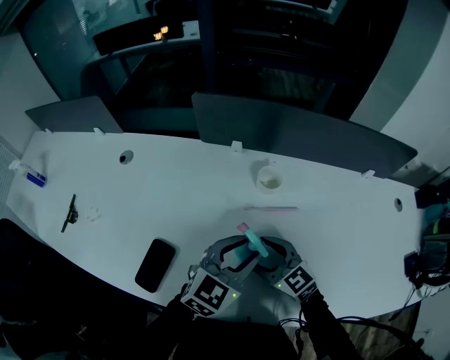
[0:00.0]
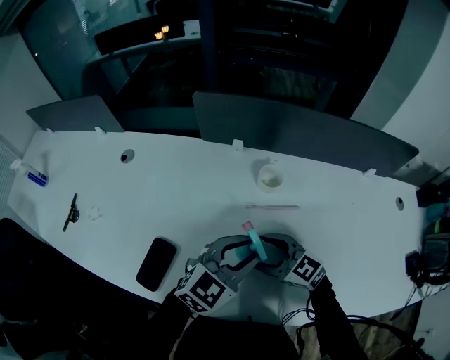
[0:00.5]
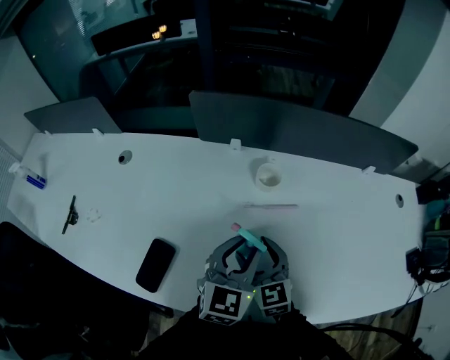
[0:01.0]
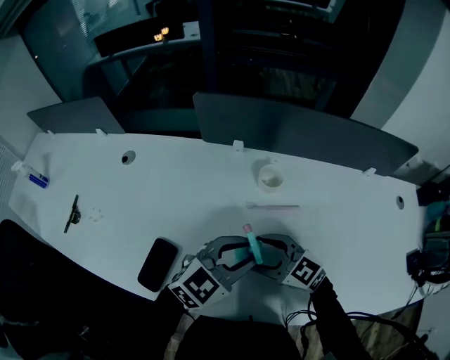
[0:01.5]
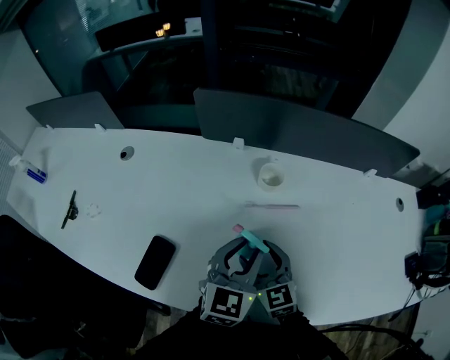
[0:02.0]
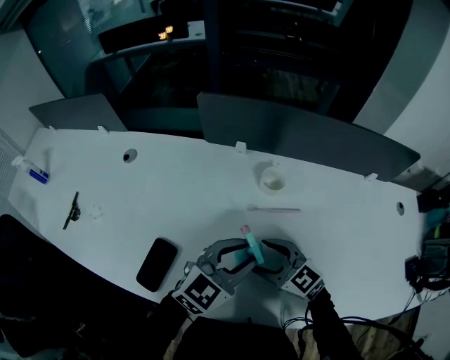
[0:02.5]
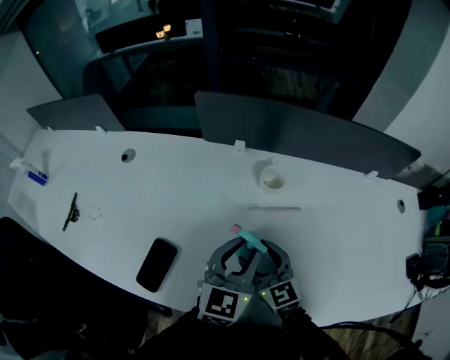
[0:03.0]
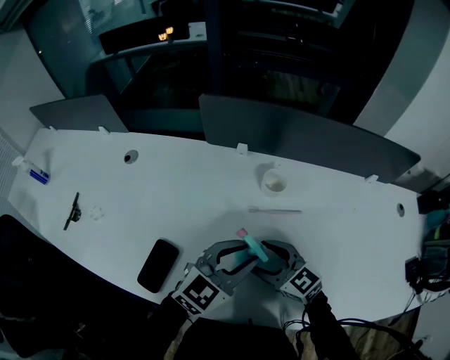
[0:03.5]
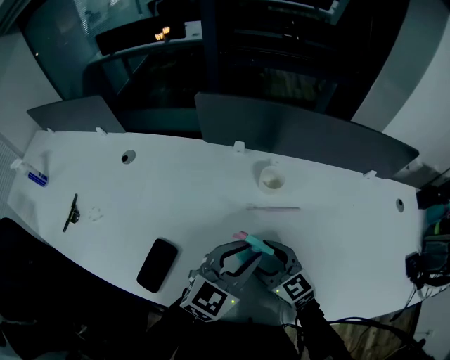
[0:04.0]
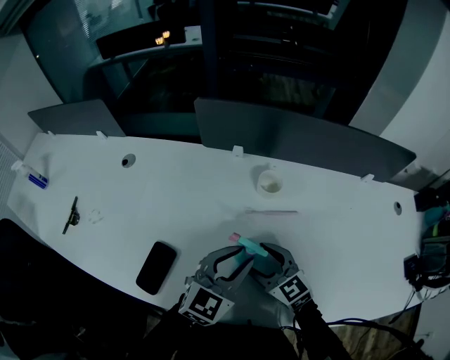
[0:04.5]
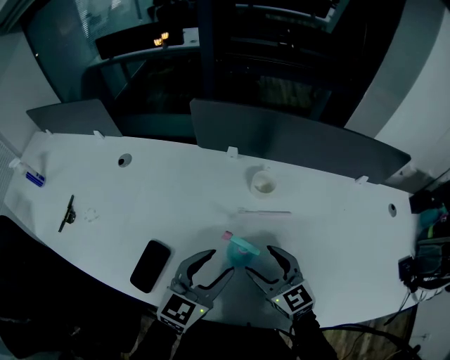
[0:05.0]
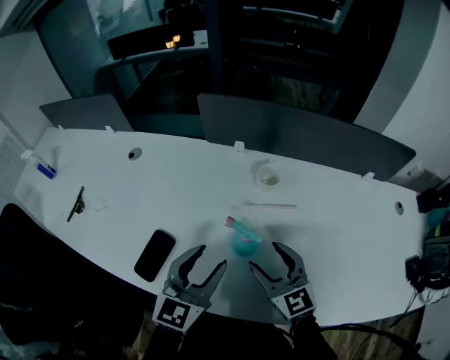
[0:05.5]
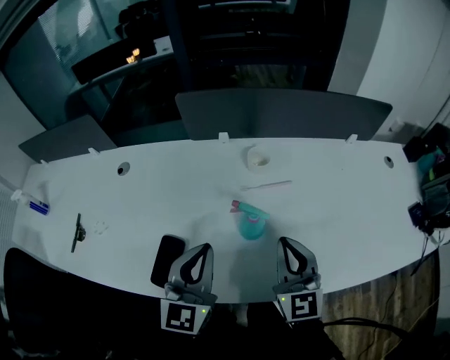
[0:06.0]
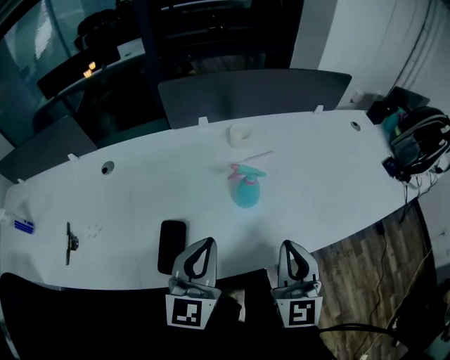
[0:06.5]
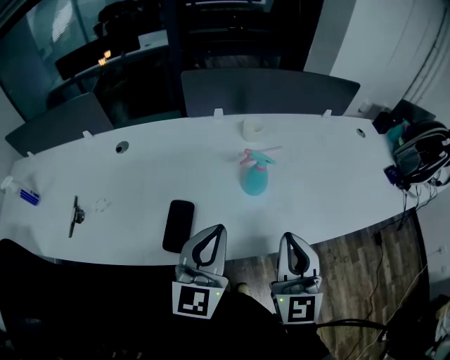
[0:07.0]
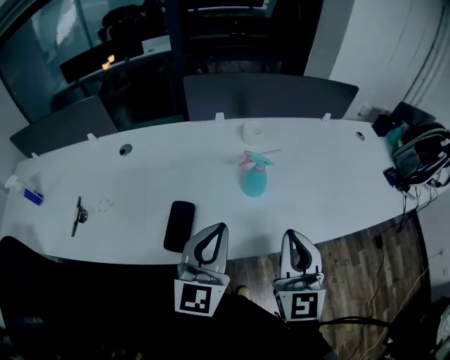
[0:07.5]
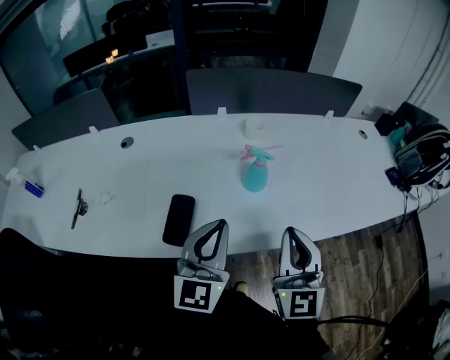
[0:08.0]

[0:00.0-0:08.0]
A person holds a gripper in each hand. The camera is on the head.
0:00.0 to 0:02.0: The right gripper turns by roughly 20 degrees.
0:04.0 to 0:06.0: The right gripper is displaced upward and backward by some 15 cm, rotates some 40 degrees, and closes up. The left gripper goes about 15 cm to the left and backward, rotates some 20 degrees, and closes.
0:06.0 to 0:08.0: The grippers both shift backward by roughly 15 cm.

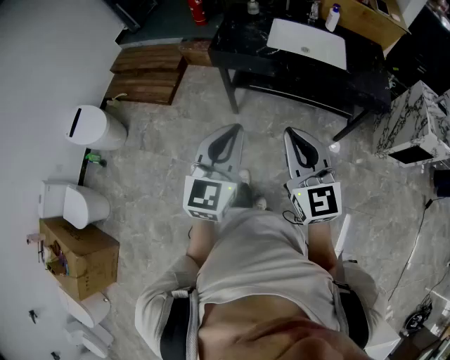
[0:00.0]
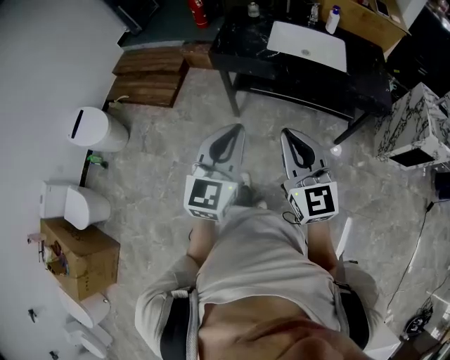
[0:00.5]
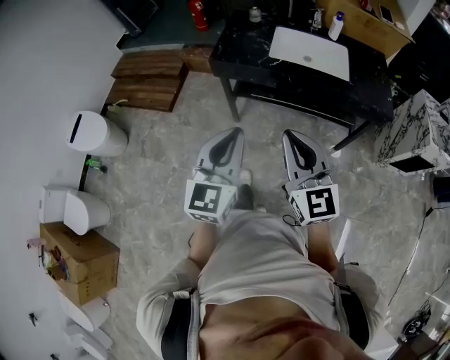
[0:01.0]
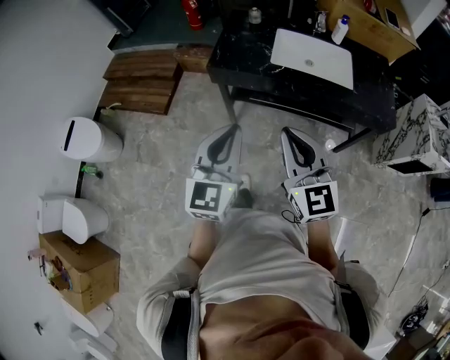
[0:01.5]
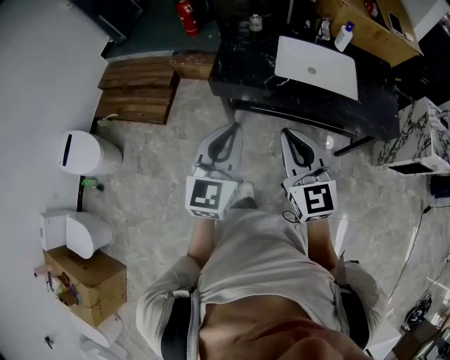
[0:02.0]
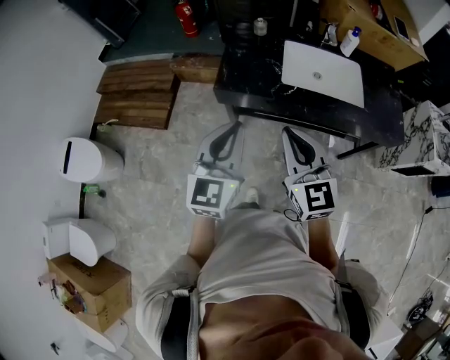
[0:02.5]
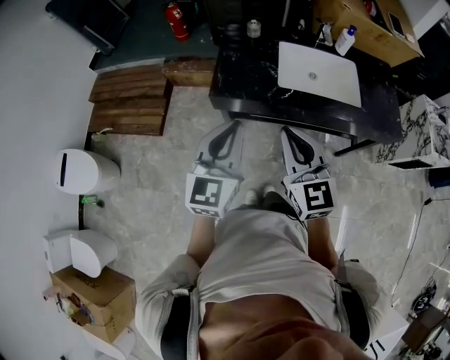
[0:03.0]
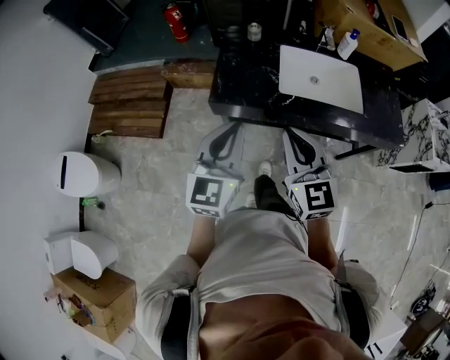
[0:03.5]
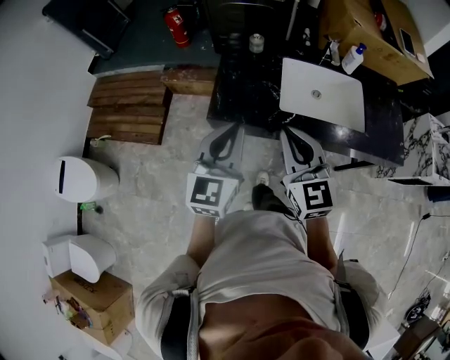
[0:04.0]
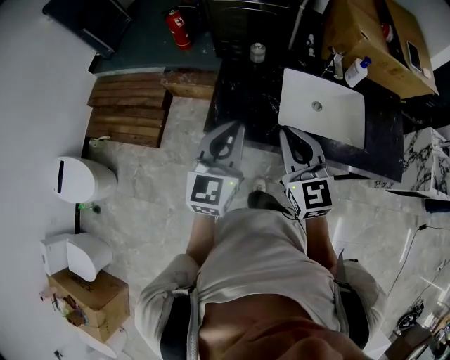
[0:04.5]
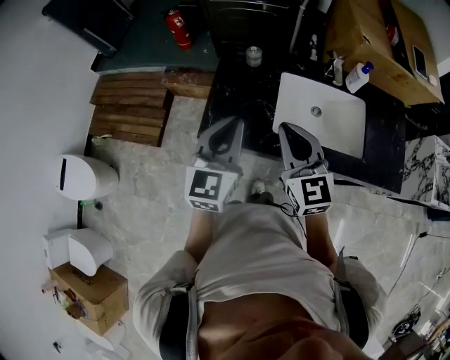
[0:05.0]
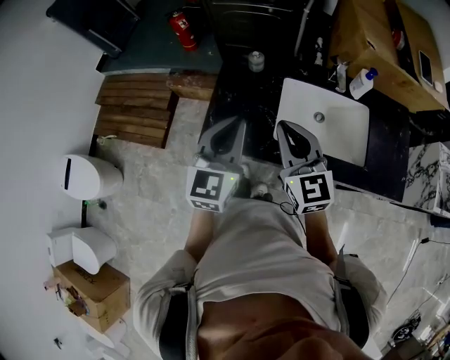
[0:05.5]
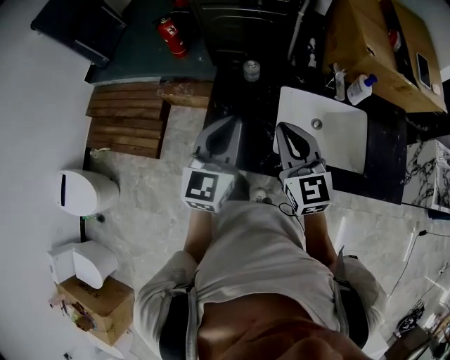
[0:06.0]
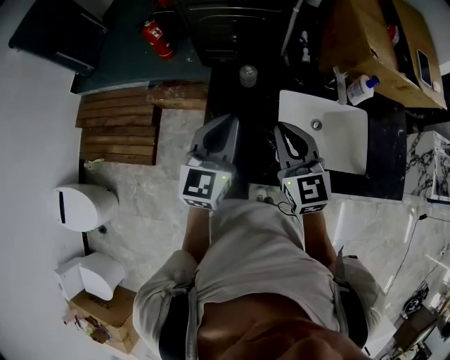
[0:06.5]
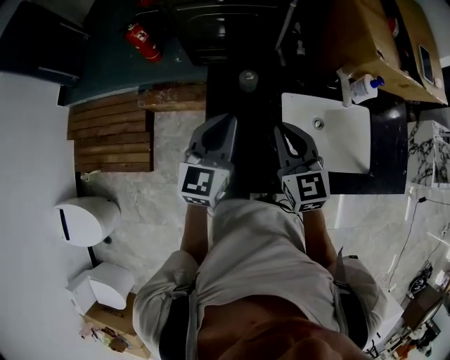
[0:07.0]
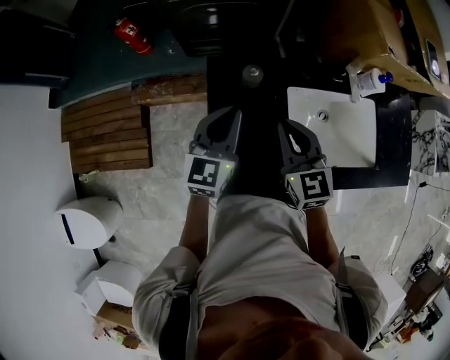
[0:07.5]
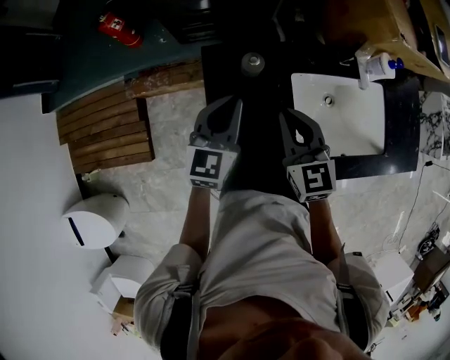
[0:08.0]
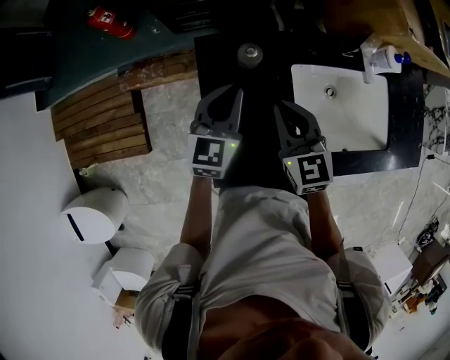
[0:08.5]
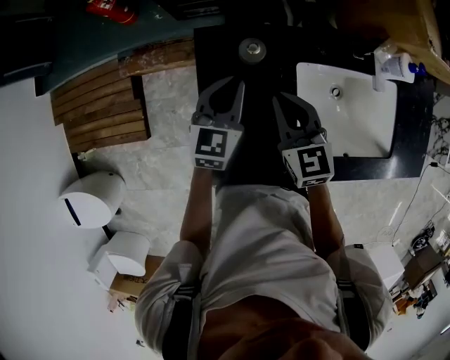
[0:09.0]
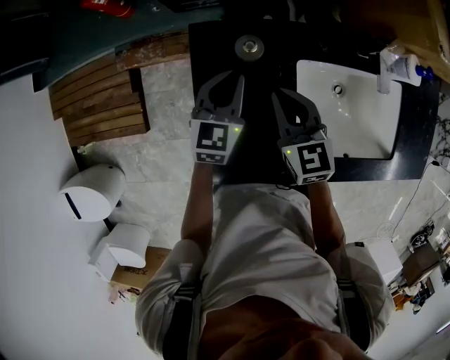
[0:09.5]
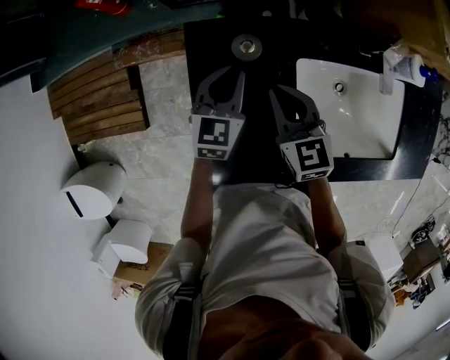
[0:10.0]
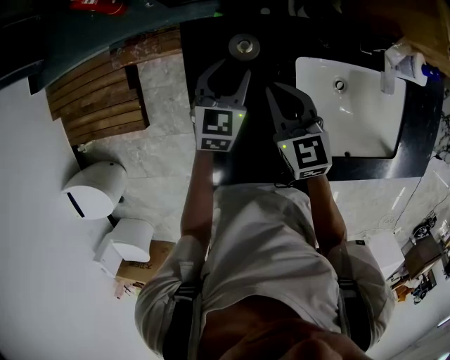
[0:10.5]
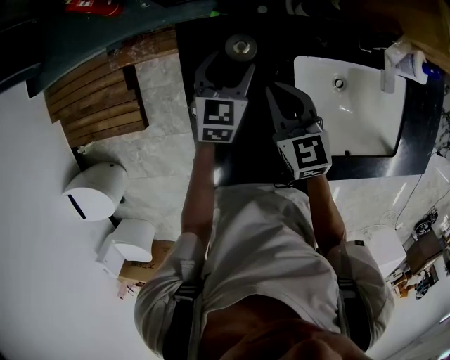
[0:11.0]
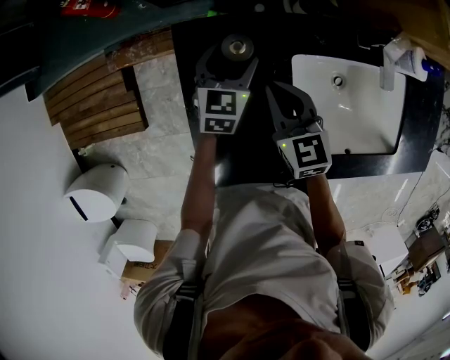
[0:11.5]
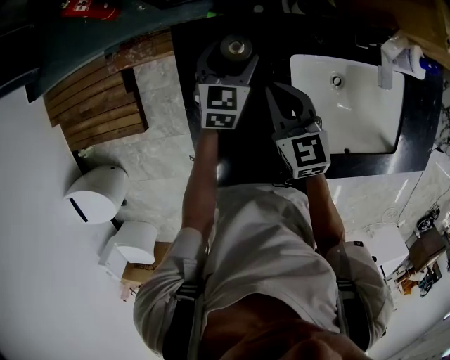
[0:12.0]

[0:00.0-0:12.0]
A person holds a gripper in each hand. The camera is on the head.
0:00.0 to 0:02.0: The grippers both shift forward by about 20 cm.
0:02.0 to 0:04.0: The two grippers go some 20 cm forward.
0:04.0 to 0:06.0: The two grippers go about 20 cm forward.
0:06.0 to 0:08.0: The left gripper travels forward and downward by roughly 25 cm, and rotates roughly 20 degrees, while the right gripper goes about 20 cm forward, downward and to the left.
0:08.0 to 0:10.0: Both grippers move downward and forward, about 10 cm.
0:10.0 to 0:12.0: The left gripper goes some 5 cm forward, and opens up.

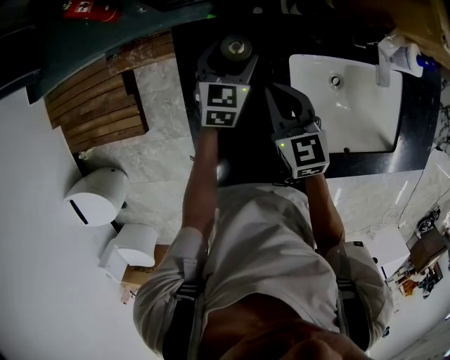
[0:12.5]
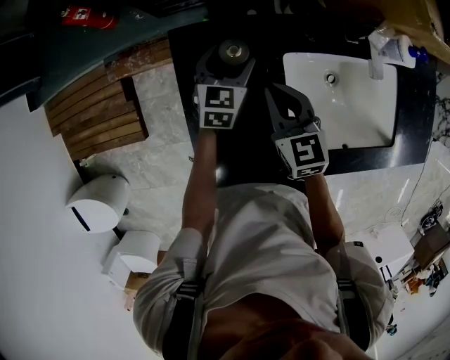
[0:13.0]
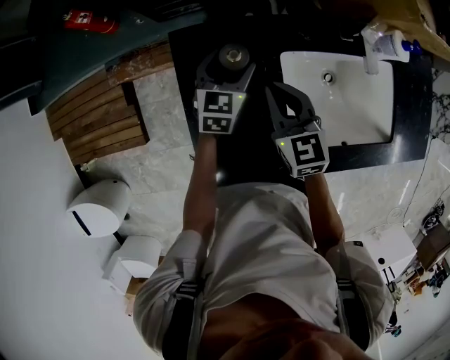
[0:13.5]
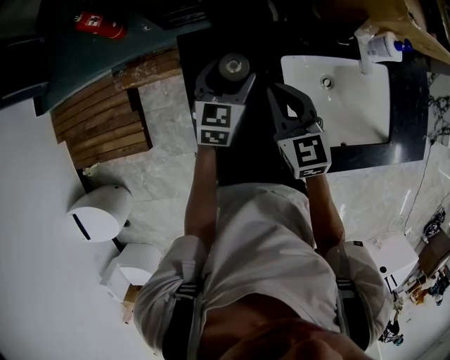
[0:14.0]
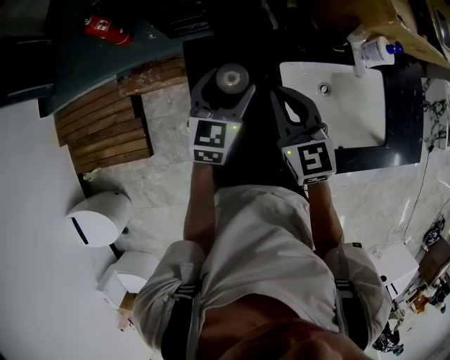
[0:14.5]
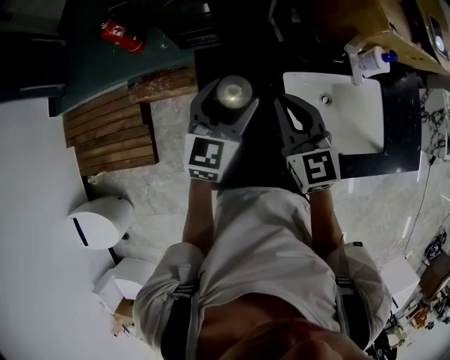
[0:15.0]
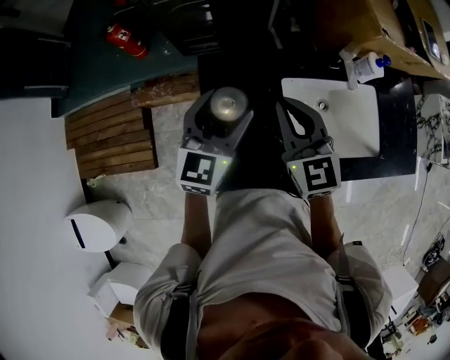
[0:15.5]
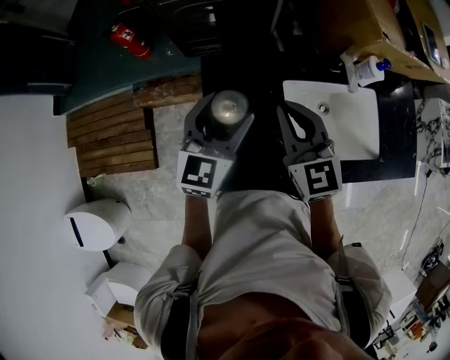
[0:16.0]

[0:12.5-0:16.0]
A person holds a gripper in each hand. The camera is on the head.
0:12.5 to 0:14.5: The right gripper travels upward by roughly 10 cm. Meanwhile the left gripper heads upward and backward, covering roughly 15 cm.
0:14.5 to 0:16.0: The left gripper travels upward and backward by roughly 15 cm, while the right gripper moves upward, about 10 cm.

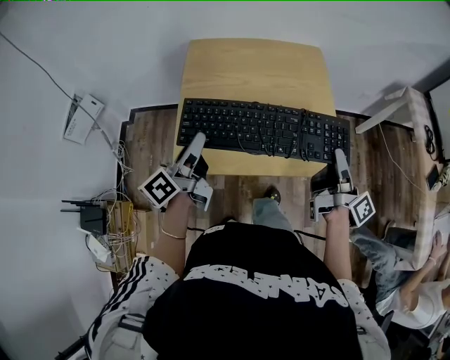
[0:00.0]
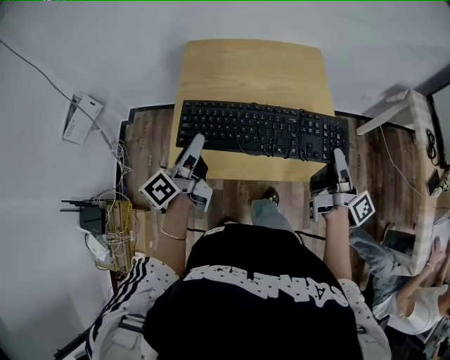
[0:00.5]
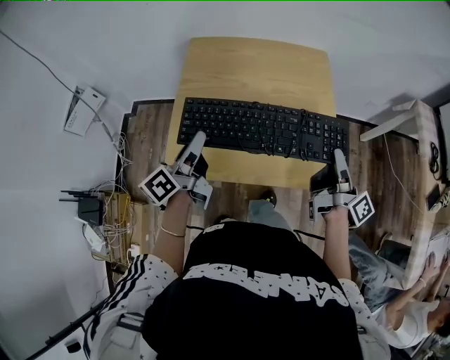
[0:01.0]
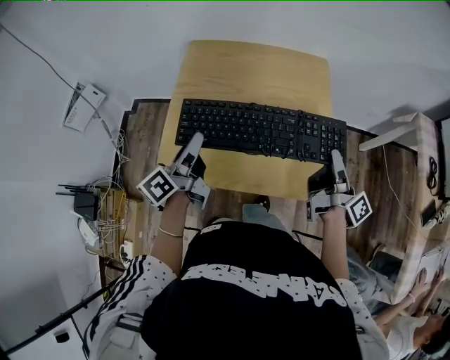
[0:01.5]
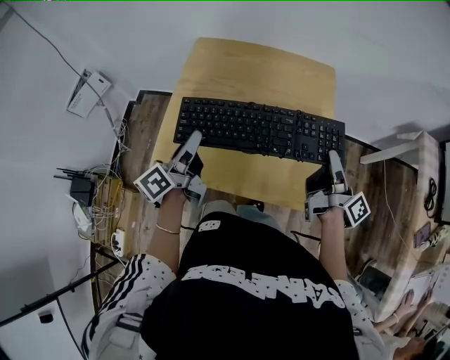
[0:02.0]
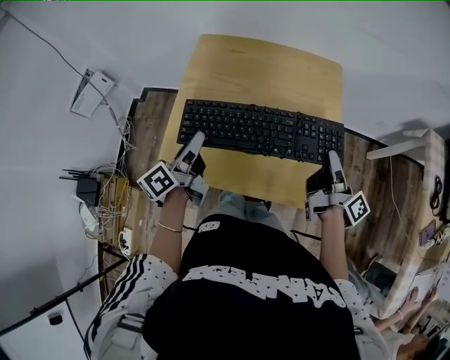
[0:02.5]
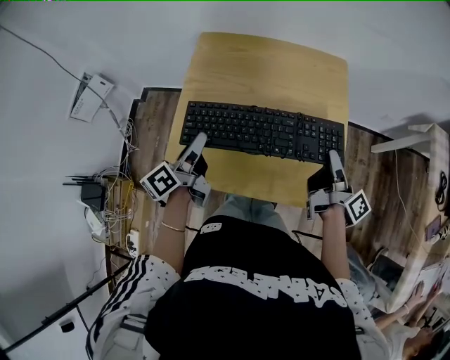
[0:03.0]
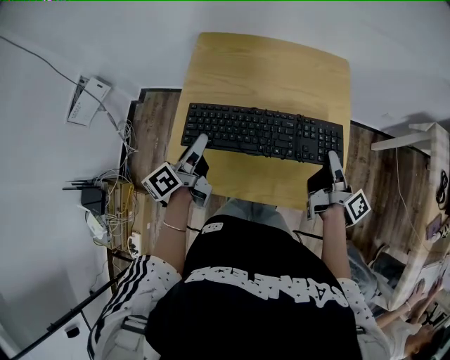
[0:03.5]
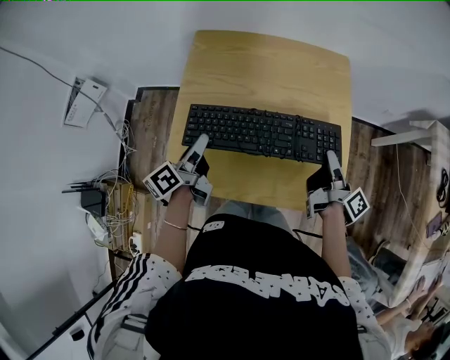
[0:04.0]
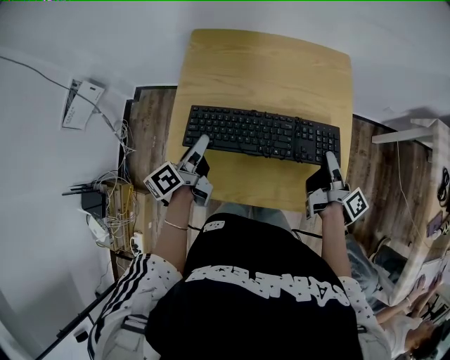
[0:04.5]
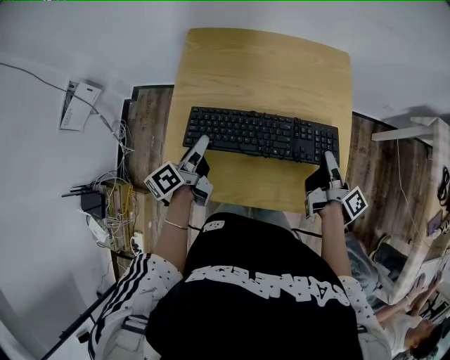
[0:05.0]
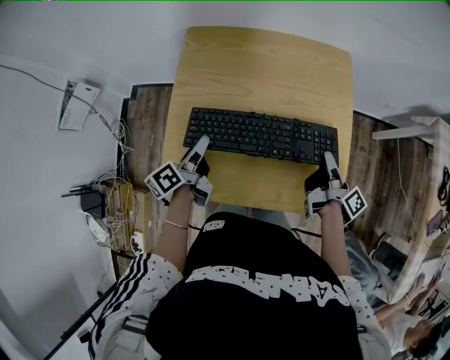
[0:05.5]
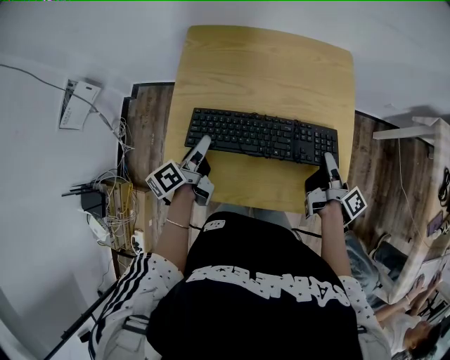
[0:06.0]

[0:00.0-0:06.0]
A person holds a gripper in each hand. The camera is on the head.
0:00.0 to 0:02.0: The left gripper is displaced upward by about 10 cm.
0:02.0 to 0:04.0: The left gripper moves downward, some 5 cm.
